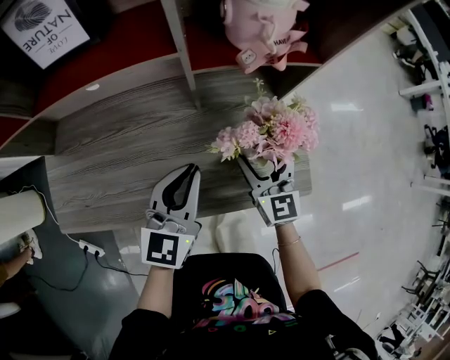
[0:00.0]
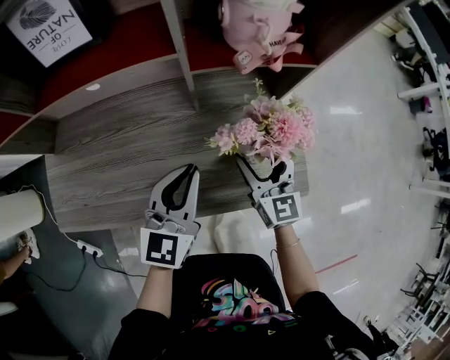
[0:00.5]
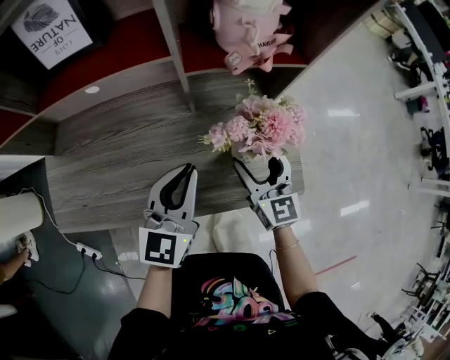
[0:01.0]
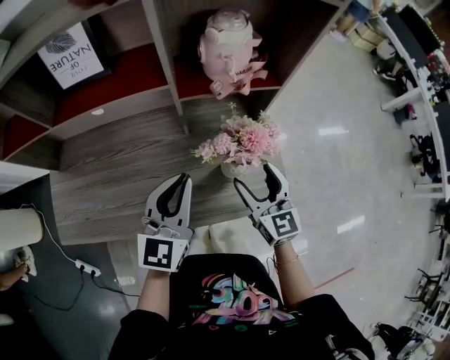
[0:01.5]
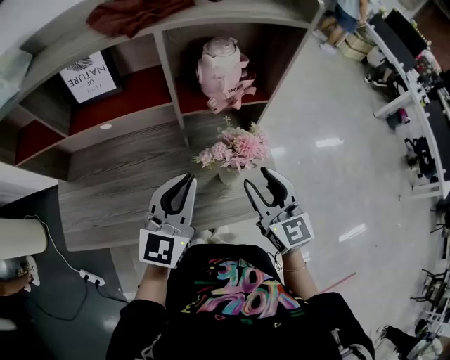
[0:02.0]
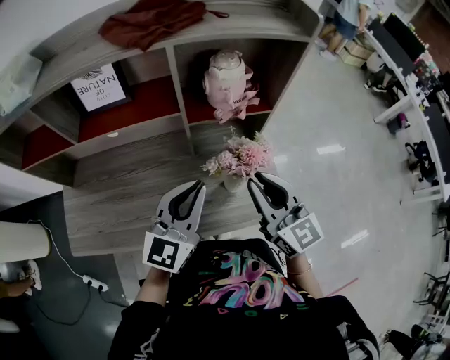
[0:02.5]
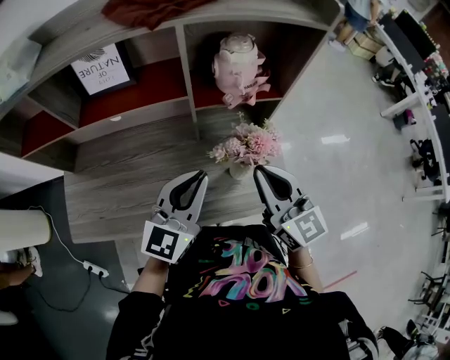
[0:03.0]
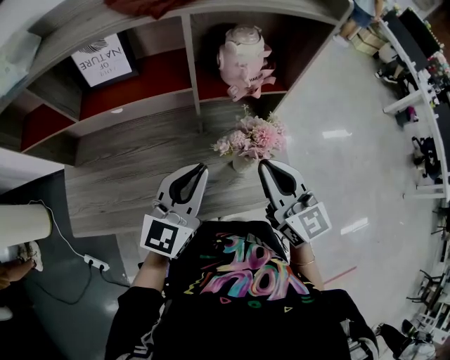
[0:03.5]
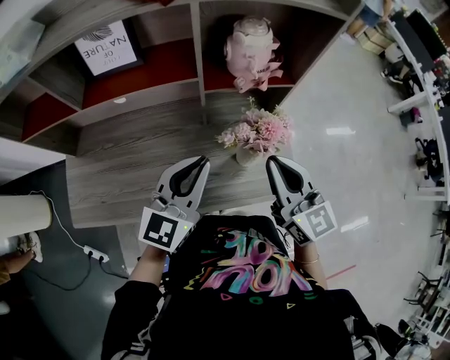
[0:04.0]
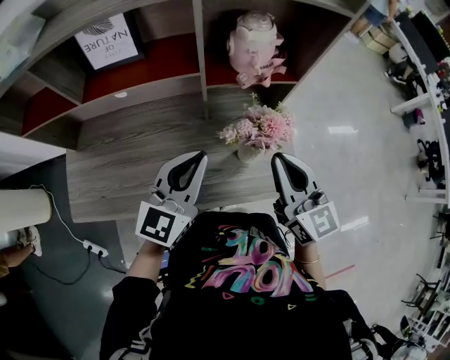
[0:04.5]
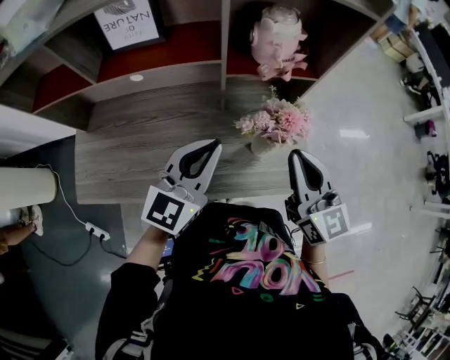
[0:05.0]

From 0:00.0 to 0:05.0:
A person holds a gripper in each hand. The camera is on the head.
From 0:00.0 to 0:02.5: The left gripper travels upward by roughly 15 cm. Meanwhile the right gripper is displaced upward by some 25 cm, and closes its fingers.
From 0:02.5 to 0:05.0: There are only small adjustments of the grippers.

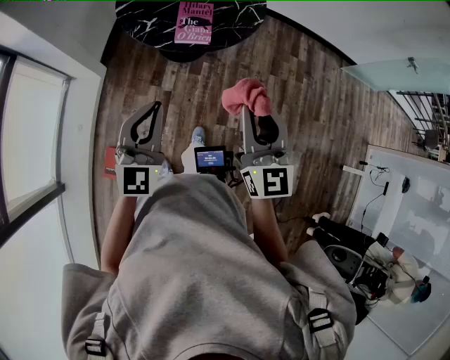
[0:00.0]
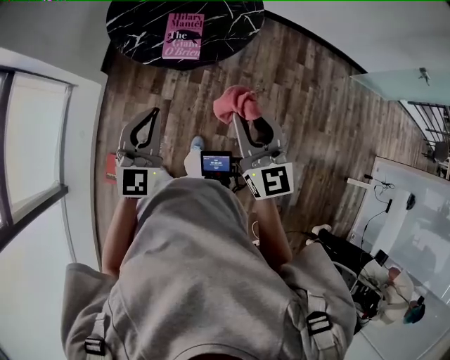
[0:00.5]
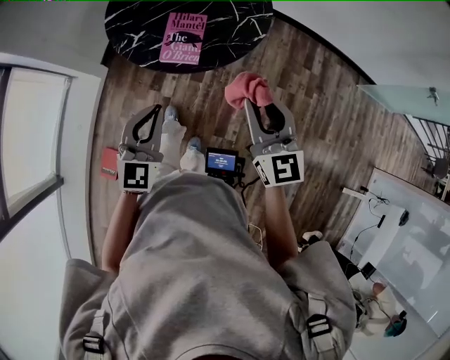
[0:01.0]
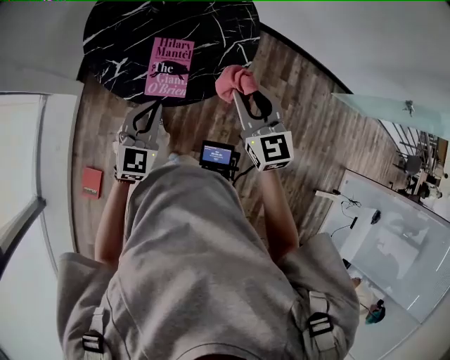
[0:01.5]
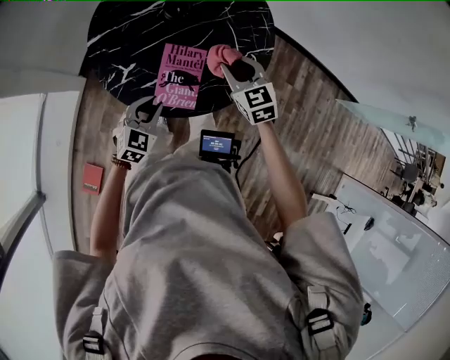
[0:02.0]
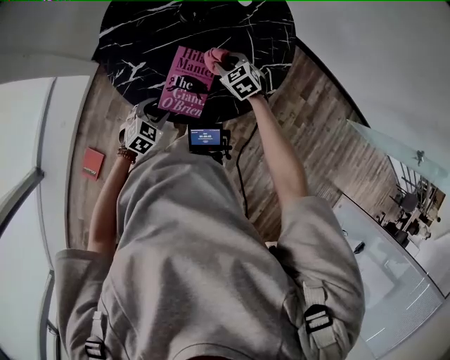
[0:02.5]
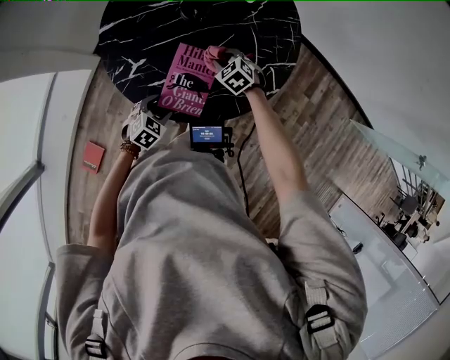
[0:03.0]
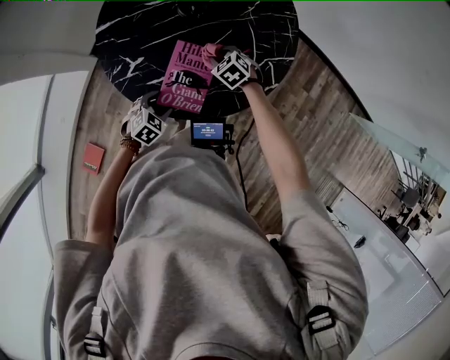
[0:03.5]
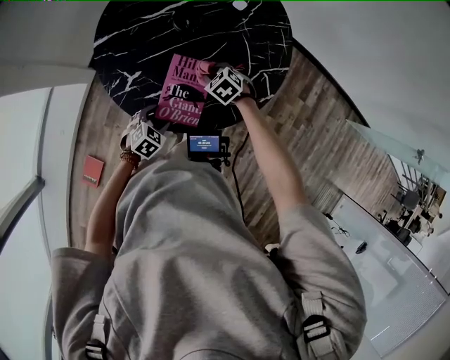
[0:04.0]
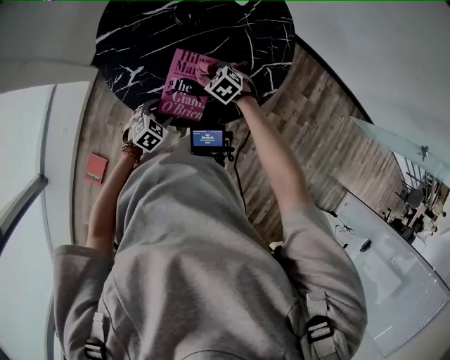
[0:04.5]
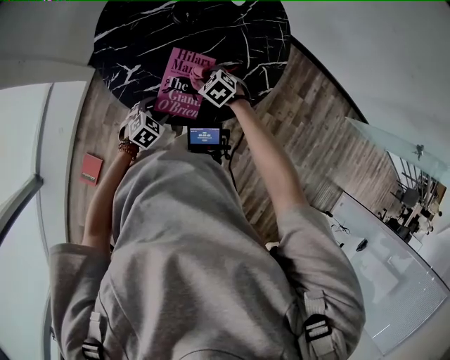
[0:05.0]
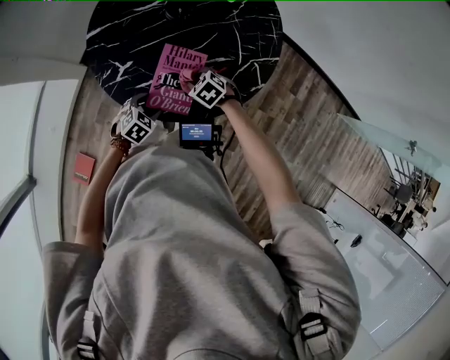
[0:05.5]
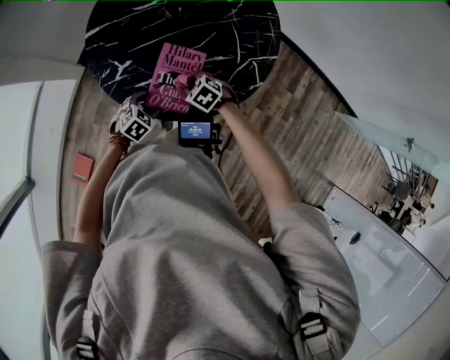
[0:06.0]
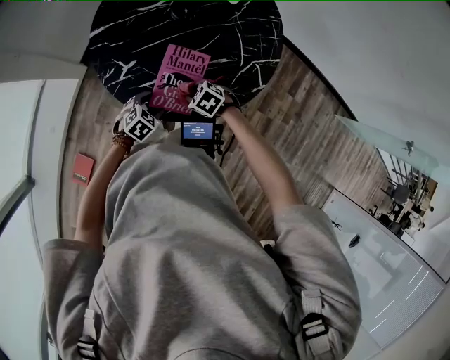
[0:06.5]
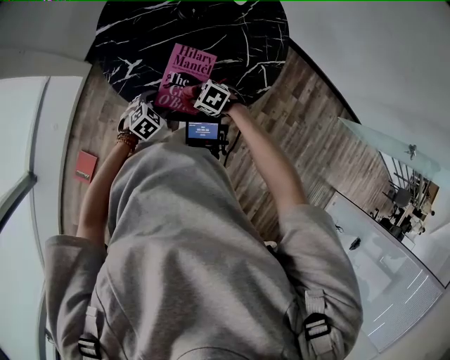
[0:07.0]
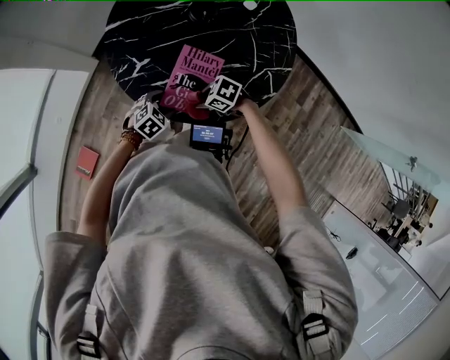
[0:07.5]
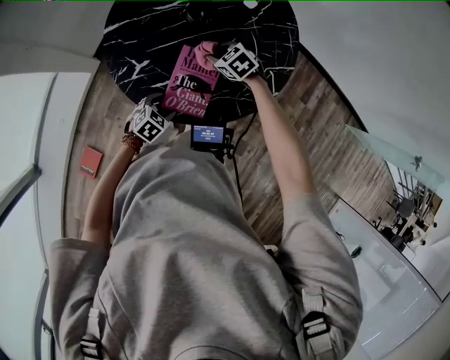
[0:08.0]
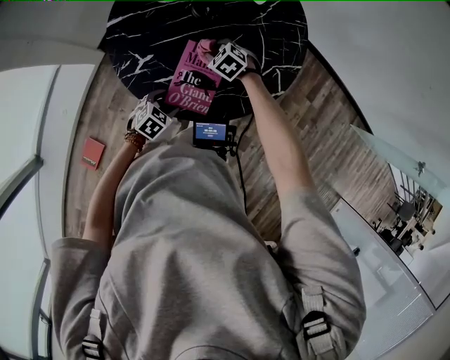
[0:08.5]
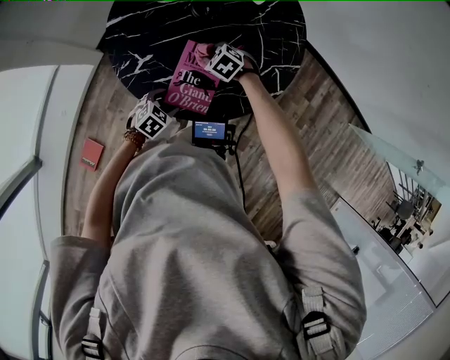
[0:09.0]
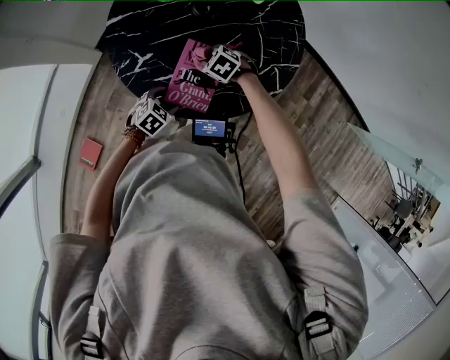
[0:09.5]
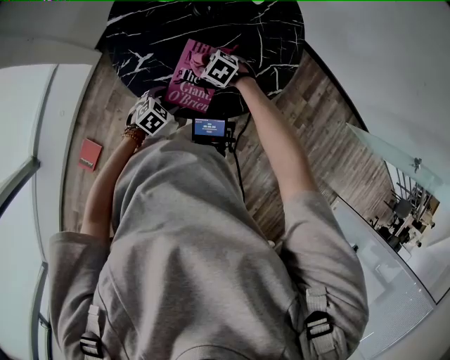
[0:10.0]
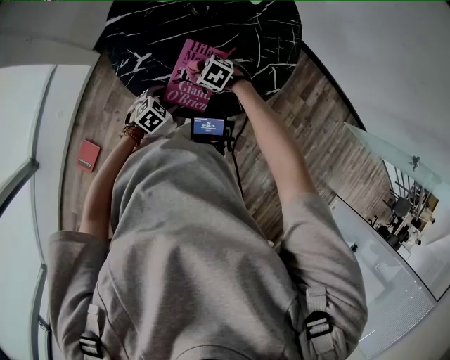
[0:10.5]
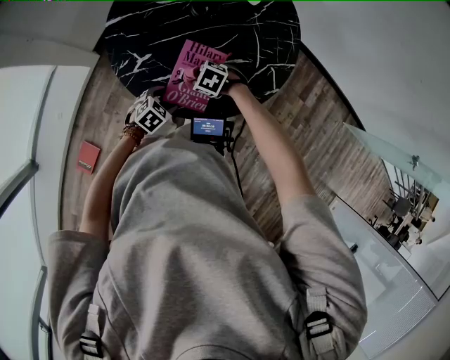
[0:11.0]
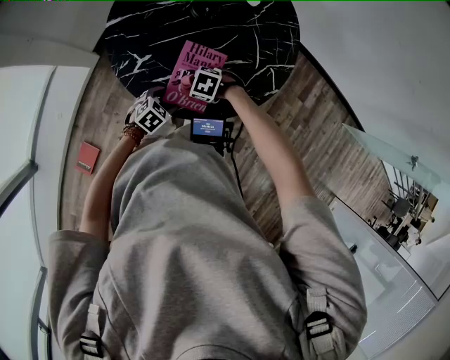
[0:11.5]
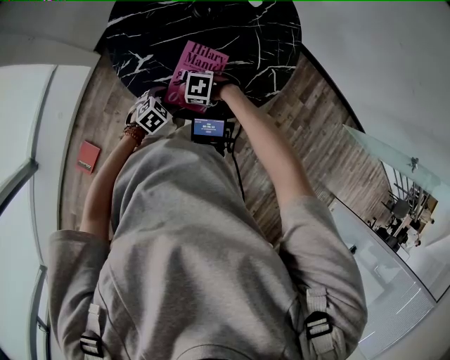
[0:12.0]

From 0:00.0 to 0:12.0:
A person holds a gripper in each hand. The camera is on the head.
From 0:00.0 to 0:02.0: The grippers both shift forward and downward by some 50 cm. The left gripper points its fingers about 30 degrees further downward; the right gripper tilts its fingers approximately 30 degrees downward.
From 0:02.0 to 0:04.0: The right gripper heads downward, covering some 20 cm, and tips its fingers downward by approximately 30 degrees, while the left gripper is displaced downward by some 15 cm, turns by roughly 30 degrees, and opens its fingers.
From 0:04.0 to 0:06.0: The right gripper is displaced backward by about 10 cm.
From 0:06.0 to 0:08.0: The right gripper ends up roughly 15 cm from where it was.
From 0:08.0 to 0:10.0: The right gripper shifts by roughly 10 cm.
From 0:10.0 to 0:12.0: The right gripper shifts by roughly 10 cm, and changes its angle by some 30 degrees.

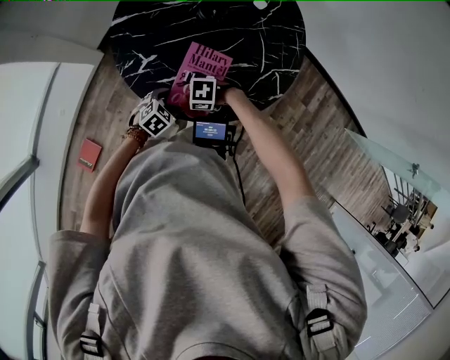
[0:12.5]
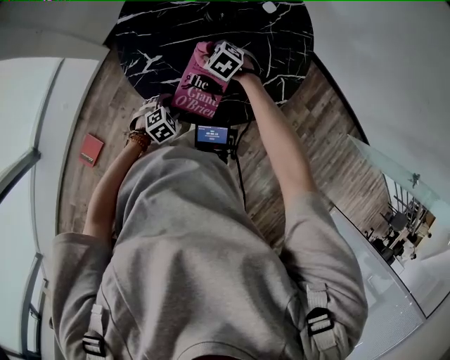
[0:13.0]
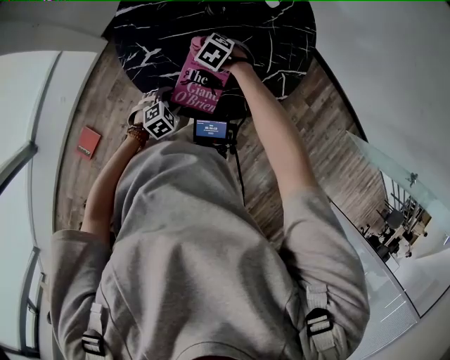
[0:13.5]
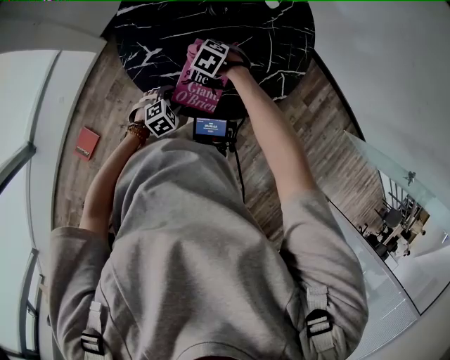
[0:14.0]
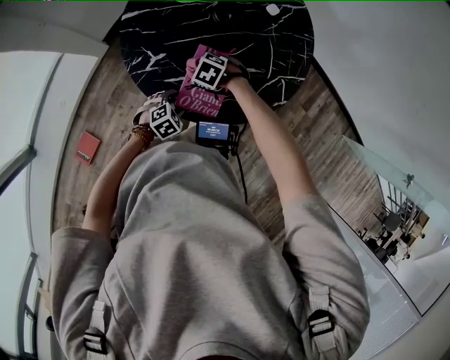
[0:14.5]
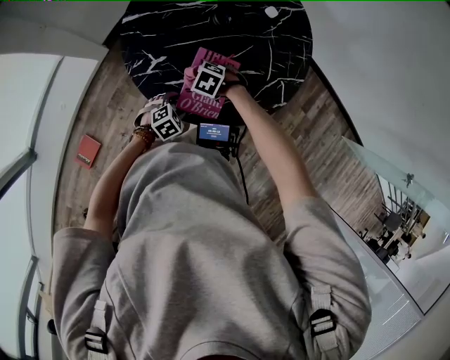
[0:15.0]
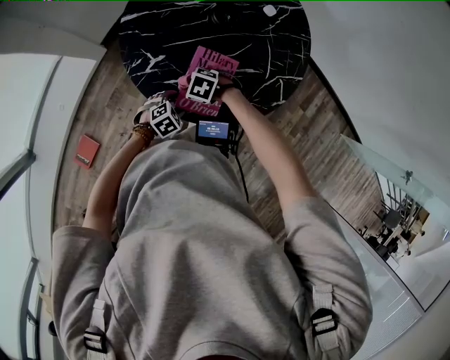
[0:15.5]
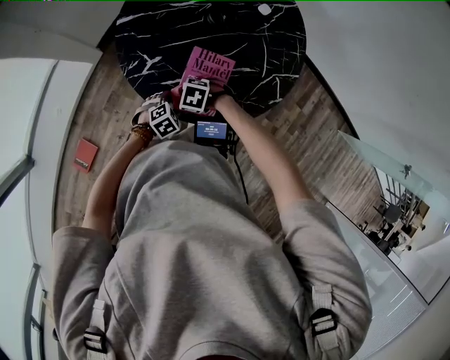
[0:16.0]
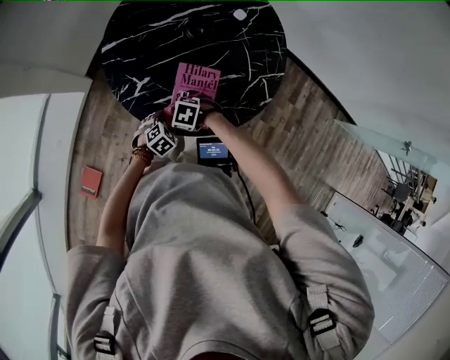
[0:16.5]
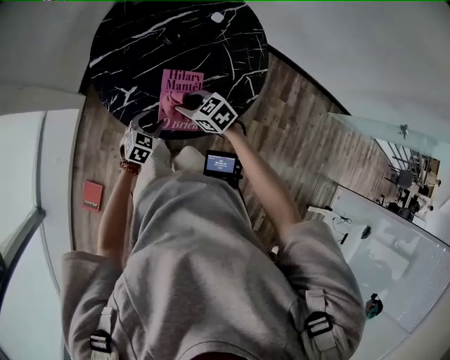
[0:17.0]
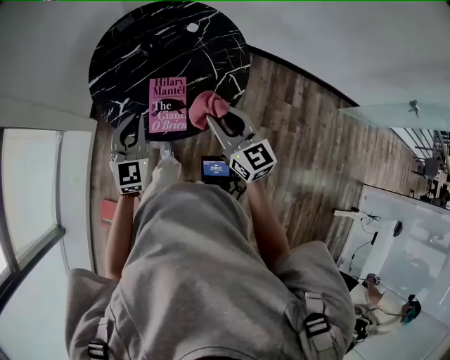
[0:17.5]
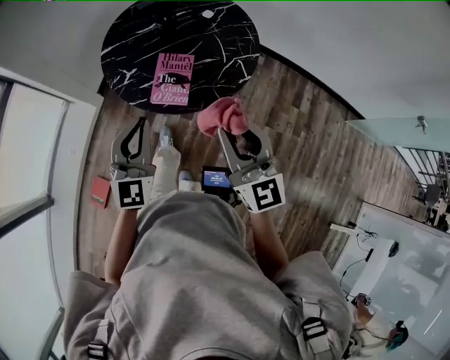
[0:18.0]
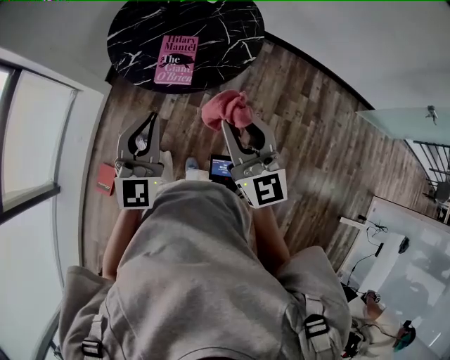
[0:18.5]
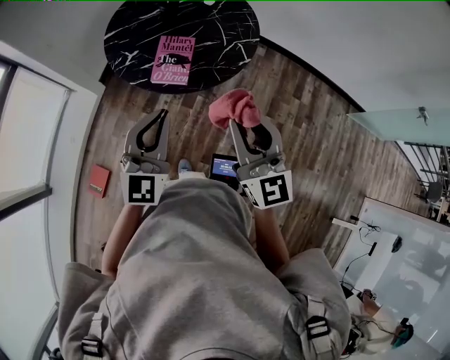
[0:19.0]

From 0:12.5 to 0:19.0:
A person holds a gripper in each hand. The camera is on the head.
From 0:12.5 to 0:14.5: The right gripper changes place by about 15 cm, and changes its angle by approximately 30 degrees.
From 0:14.5 to 0:17.0: The left gripper heads upward, covering approximately 5 cm, and turns by about 20 degrees; the right gripper is displaced upward by approximately 15 cm, and swivels about 40 degrees.
From 0:17.0 to 0:19.0: The right gripper travels backward, upward and to the right by approximately 50 cm, and angles its fingers upward, by some 50 degrees, while the left gripper shifts approximately 40 cm upward and backward, tips its fingers upward by some 40 degrees, and closes.

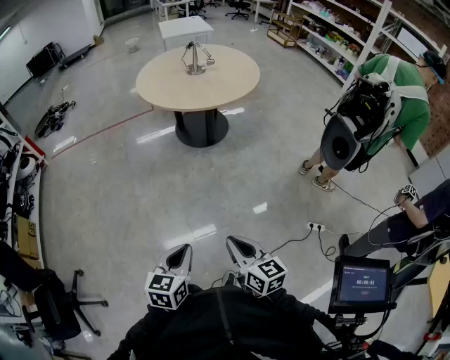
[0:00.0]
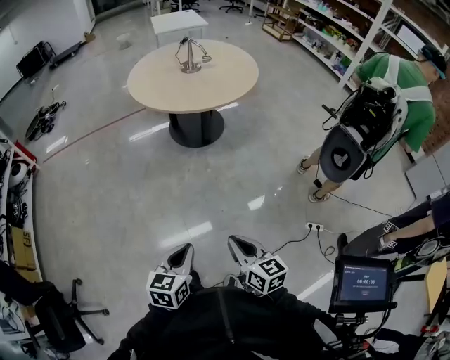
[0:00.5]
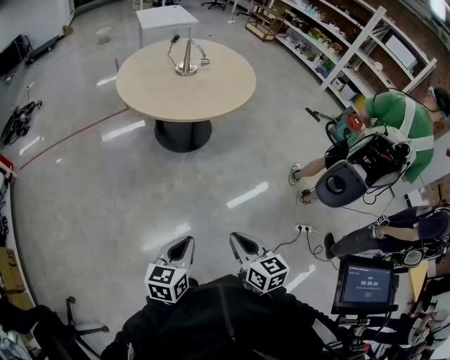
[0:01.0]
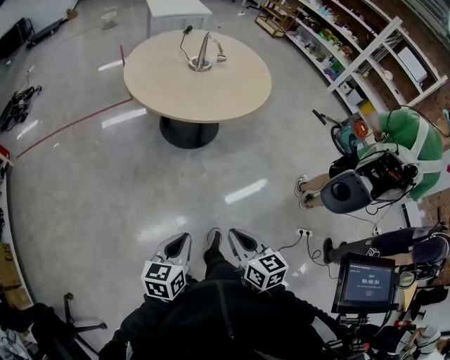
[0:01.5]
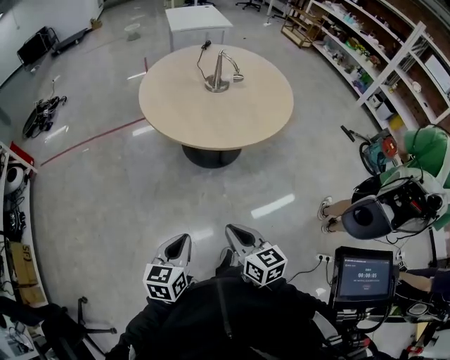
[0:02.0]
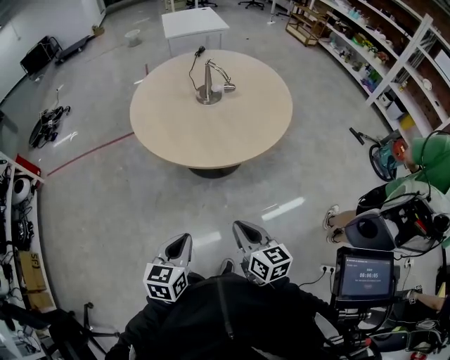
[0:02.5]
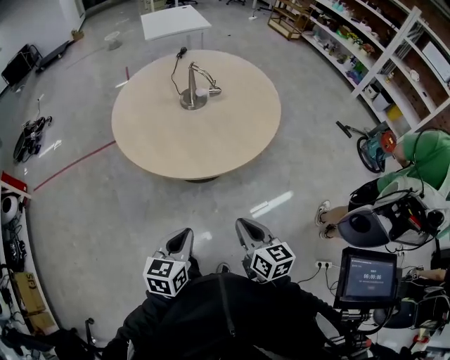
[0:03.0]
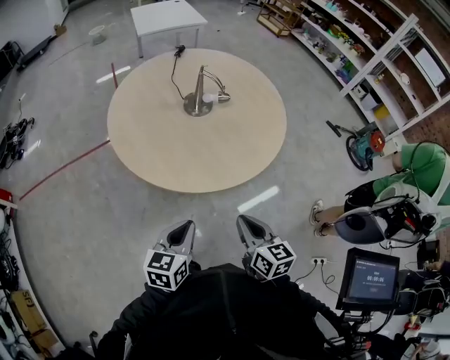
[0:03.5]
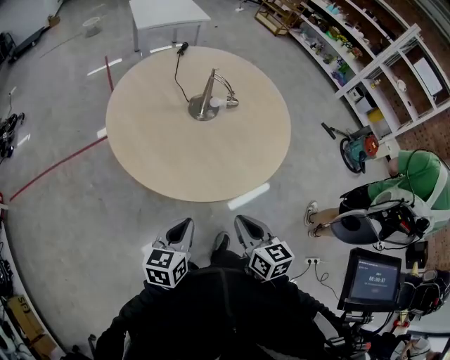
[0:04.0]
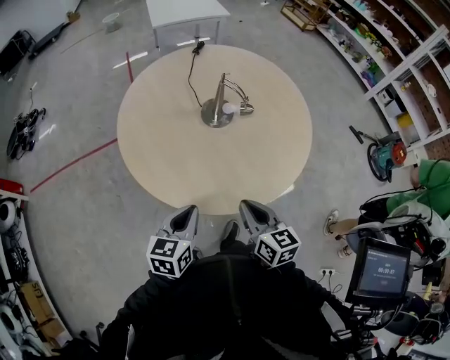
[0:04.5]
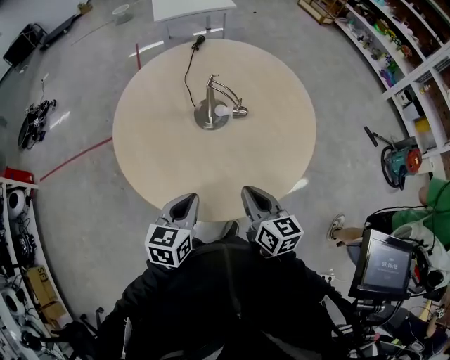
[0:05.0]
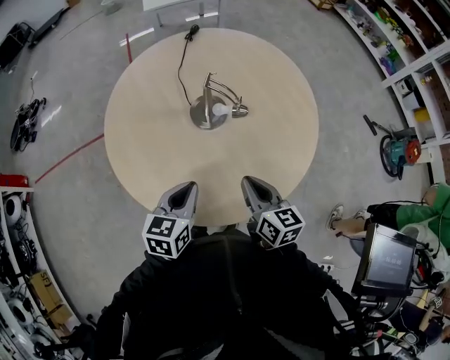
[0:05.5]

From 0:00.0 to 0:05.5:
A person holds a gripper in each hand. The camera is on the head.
From 0:00.0 to 0:02.0: The two grippers go roughly 35 cm forward.
From 0:02.0 to 0:03.5: Both grippers travel together forward, about 30 cm.
From 0:03.5 to 0:05.5: Both grippers move forward, about 25 cm.
